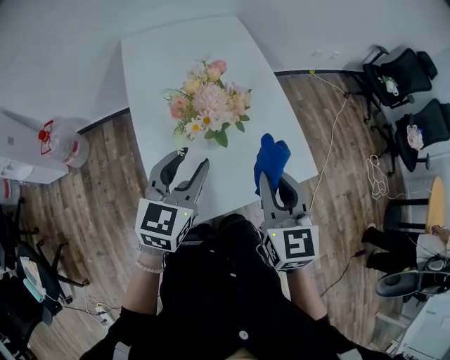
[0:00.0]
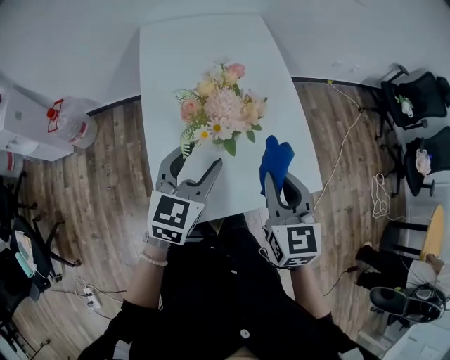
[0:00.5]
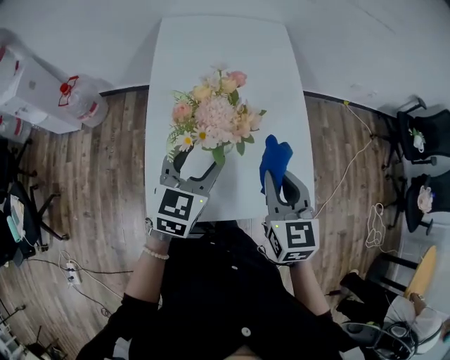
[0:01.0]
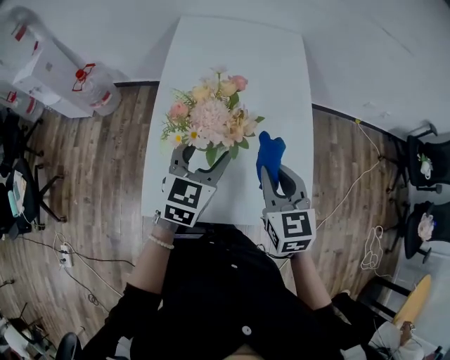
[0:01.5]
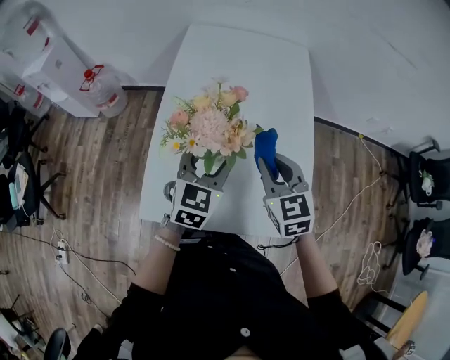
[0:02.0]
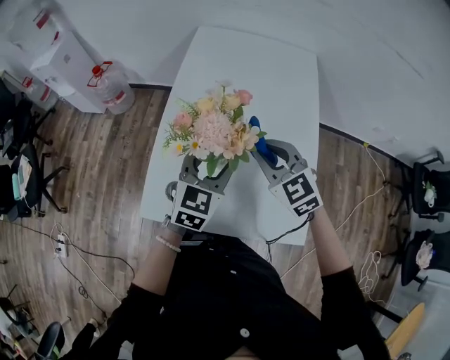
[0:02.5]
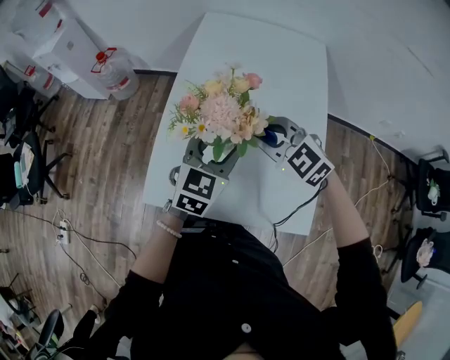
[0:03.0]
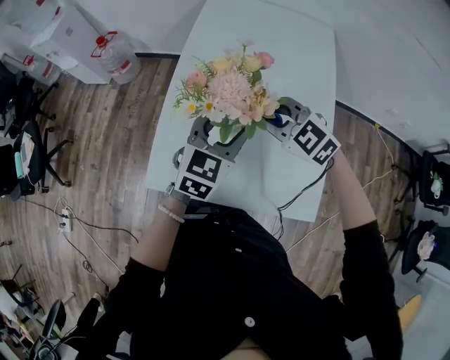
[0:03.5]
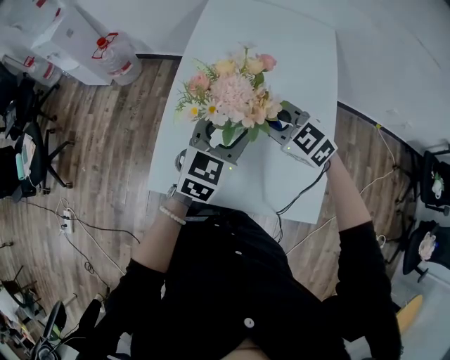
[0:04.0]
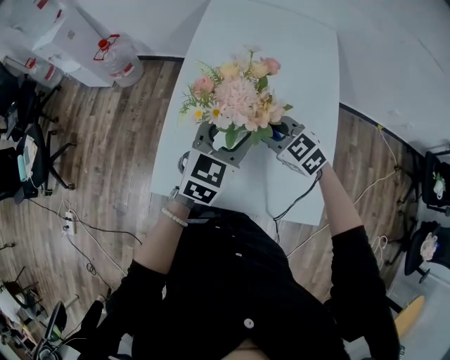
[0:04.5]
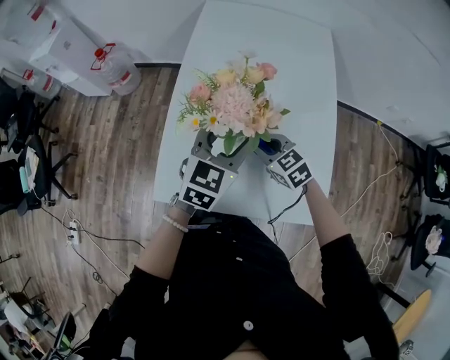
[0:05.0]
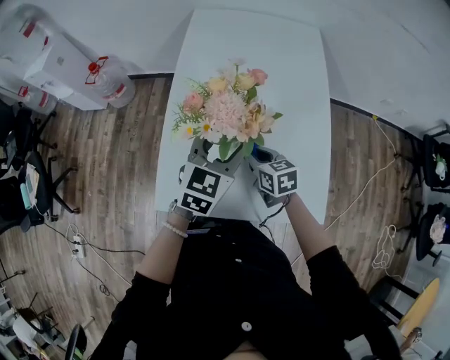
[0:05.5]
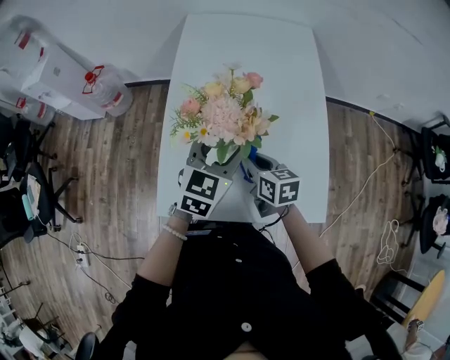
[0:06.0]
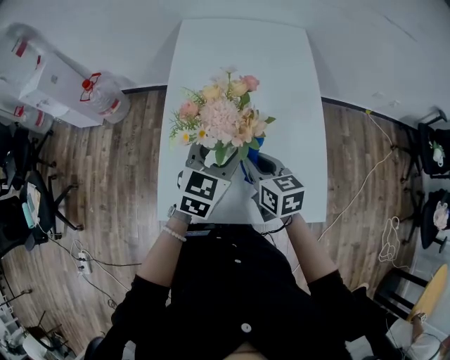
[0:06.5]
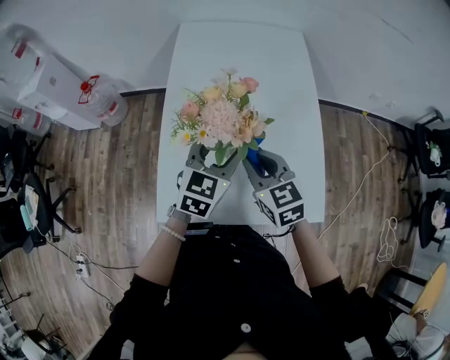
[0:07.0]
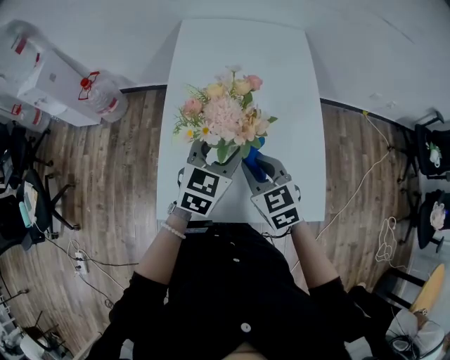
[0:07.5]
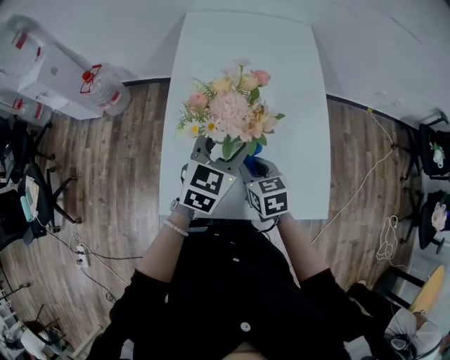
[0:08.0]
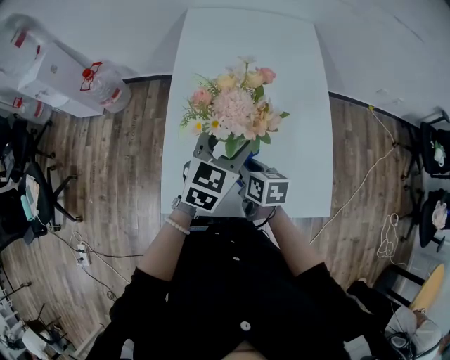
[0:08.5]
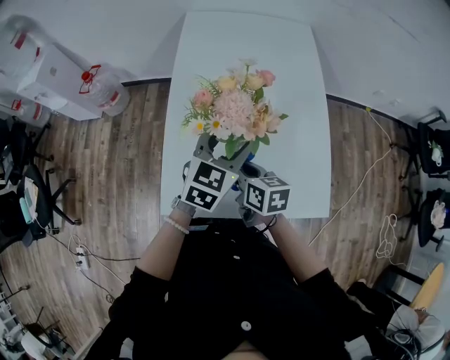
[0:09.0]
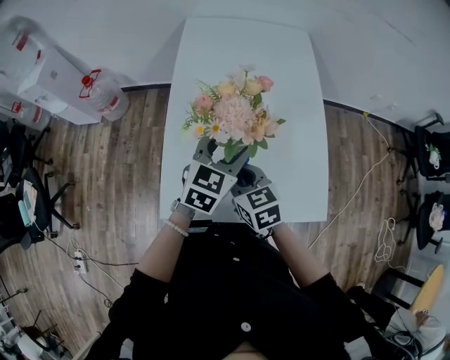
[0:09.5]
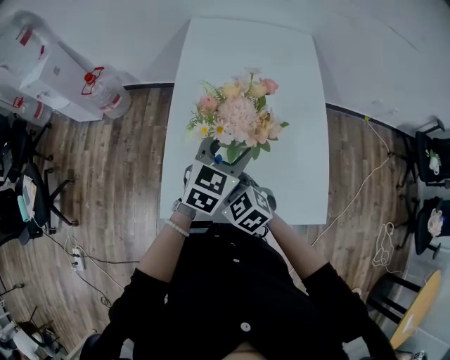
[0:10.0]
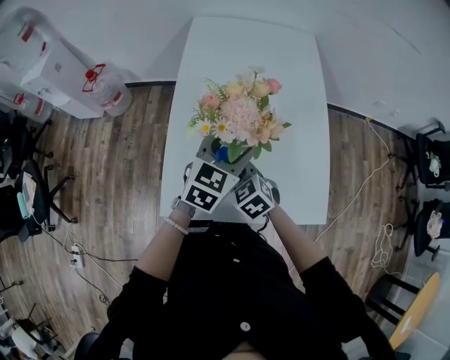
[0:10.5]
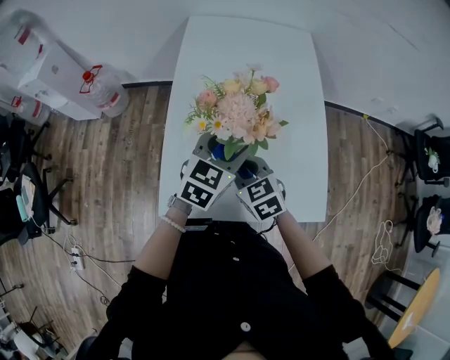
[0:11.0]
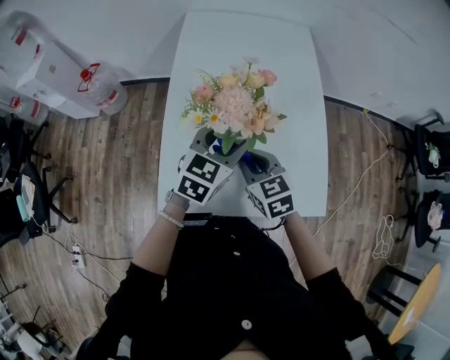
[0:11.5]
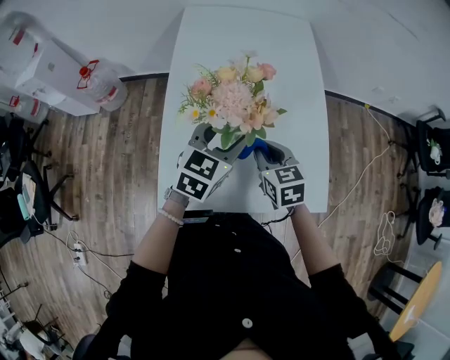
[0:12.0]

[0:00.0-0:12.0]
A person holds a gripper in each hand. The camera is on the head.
0:00.0 to 0:02.0: The right gripper ends up some 15 cm from where it was, and swivels some 40 degrees. Meanwhile the left gripper shifts by some 10 cm, and changes its angle by some 20 degrees.
0:02.0 to 0:04.0: The right gripper heads to the left and downward, covering some 10 cm, and rotates approximately 40 degrees.
0:04.0 to 0:06.0: The right gripper shifts roughly 10 cm downward, and rolls clockwise, seen from behind, by about 60 degrees.
0:06.0 to 0:08.0: The right gripper reaches some 10 cm upward, then returns.
0:08.0 to 0:10.0: The right gripper moves to the left, some 10 cm, and turns by roughly 40 degrees.
0:10.0 to 0:12.0: The right gripper heads to the right and forward, covering about 15 cm, and swivels about 40 degrees.

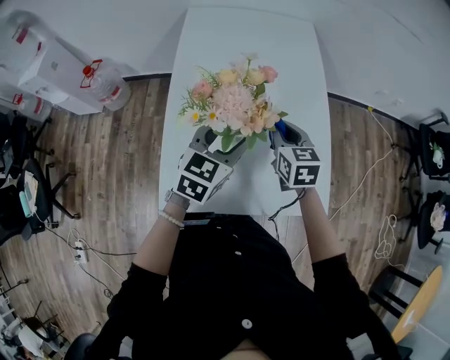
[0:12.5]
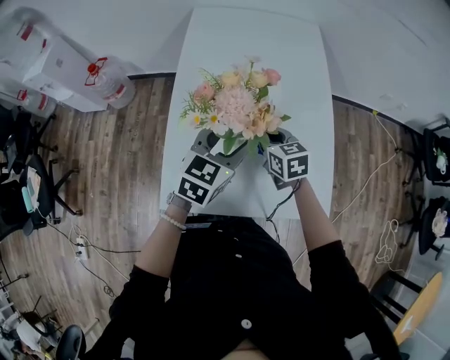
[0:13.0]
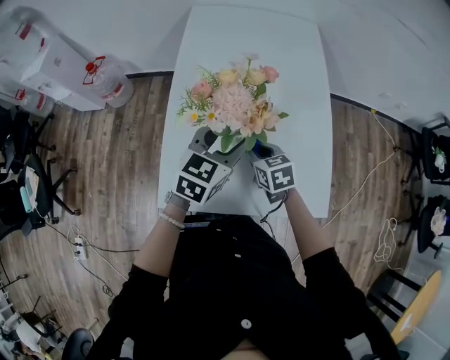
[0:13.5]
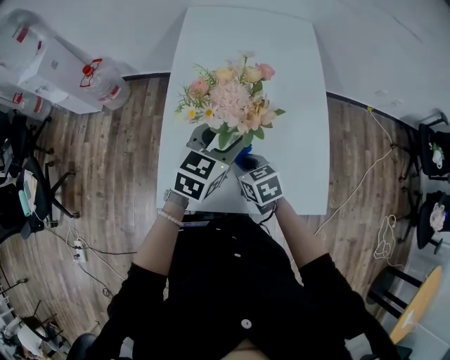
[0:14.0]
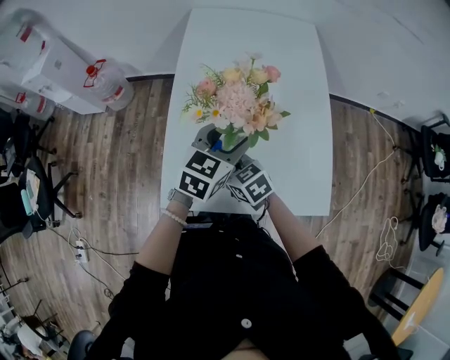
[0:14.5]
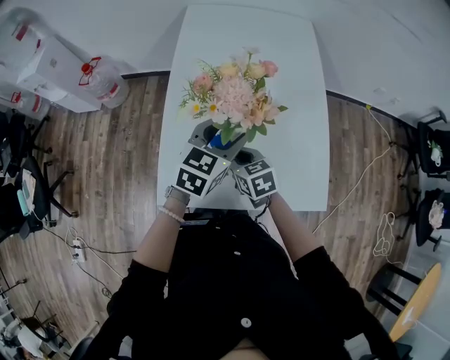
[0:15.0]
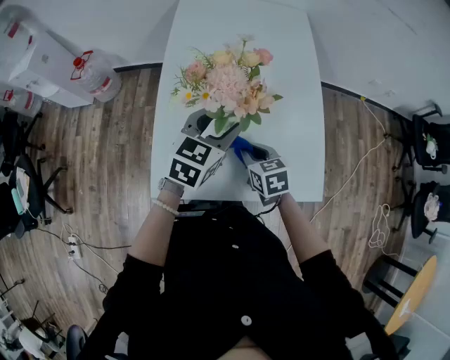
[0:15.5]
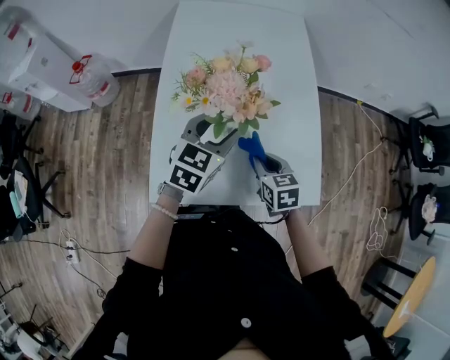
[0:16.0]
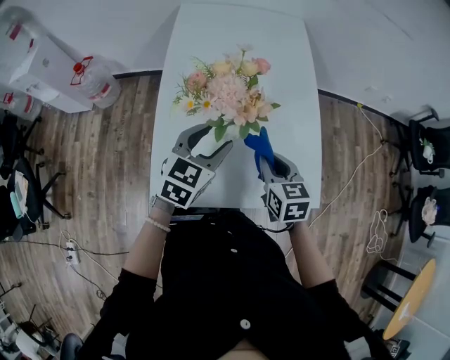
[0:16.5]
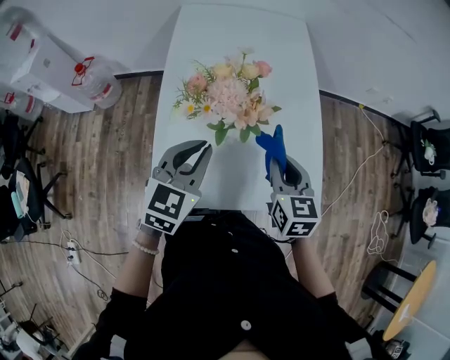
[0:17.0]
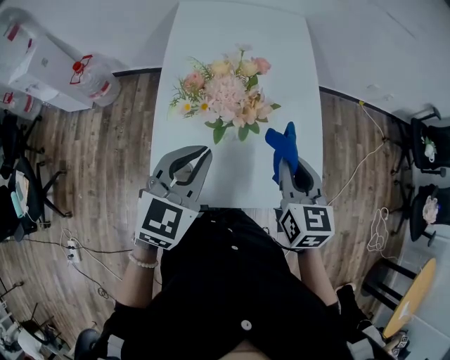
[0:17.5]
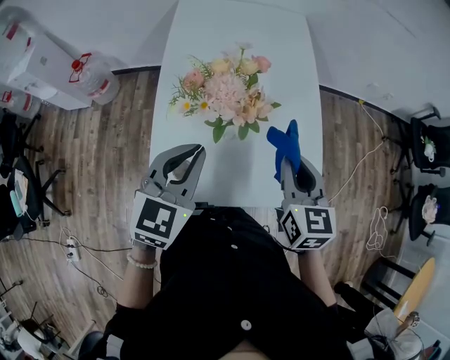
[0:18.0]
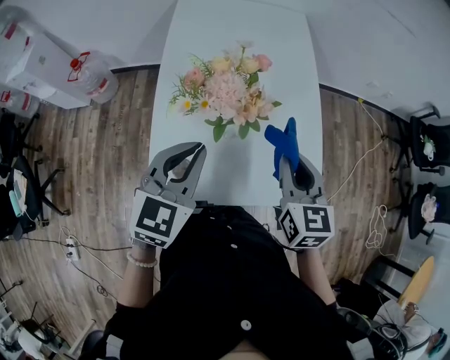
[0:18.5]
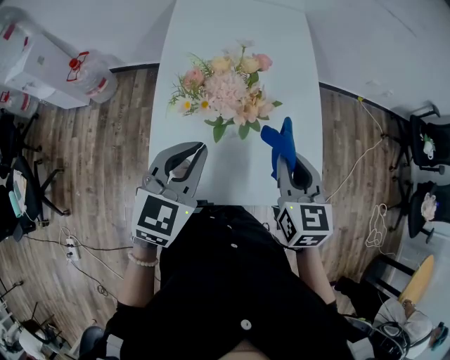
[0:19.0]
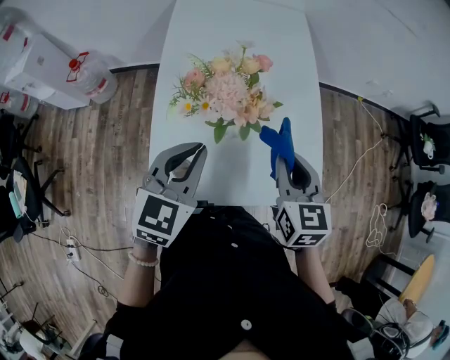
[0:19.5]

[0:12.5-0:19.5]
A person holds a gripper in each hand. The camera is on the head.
0:12.5 to 0:14.5: The right gripper shifts about 20 cm to the left, backward and downward, and changes its angle by about 40 degrees.
0:14.5 to 0:16.0: The right gripper heads to the right, covering approximately 15 cm, and swivels approximately 30 degrees.
0:16.0 to 0:17.5: The right gripper shifts roughly 15 cm upward, and turns by about 20 degrees. Meanwhile the left gripper shifts approximately 10 cm backward and upward, and closes up.
0:17.5 to 0:19.5: The grippers make only small movements.

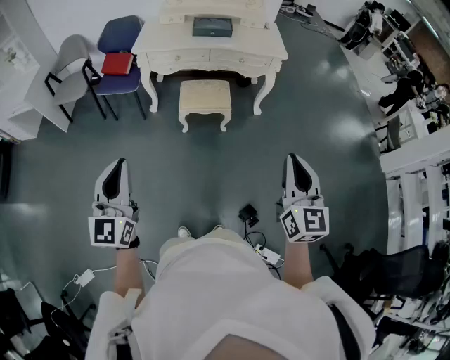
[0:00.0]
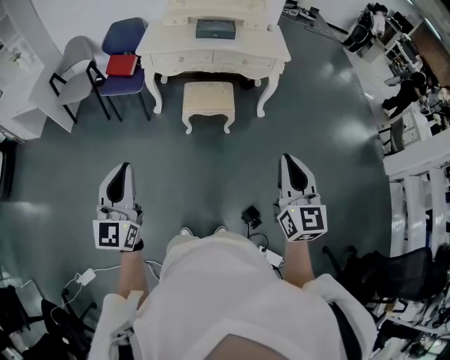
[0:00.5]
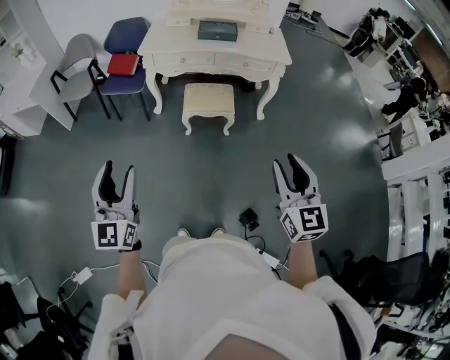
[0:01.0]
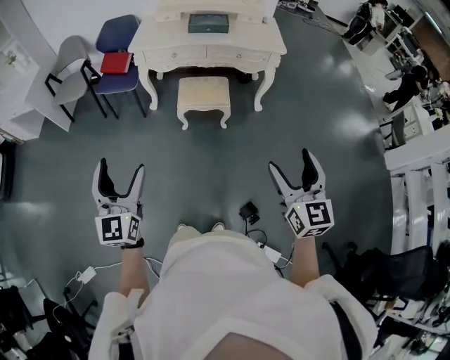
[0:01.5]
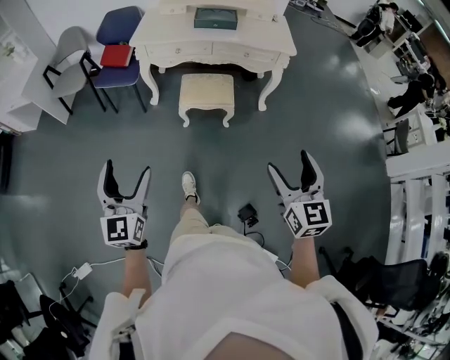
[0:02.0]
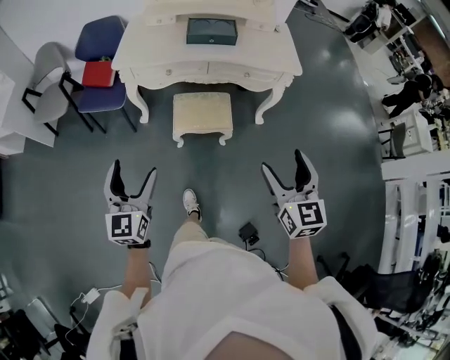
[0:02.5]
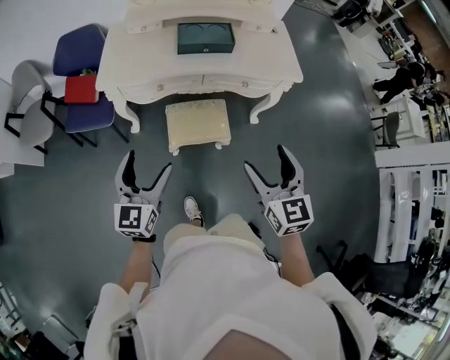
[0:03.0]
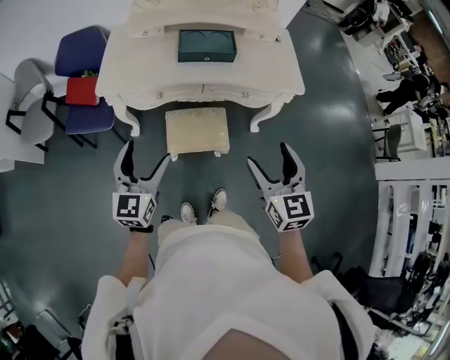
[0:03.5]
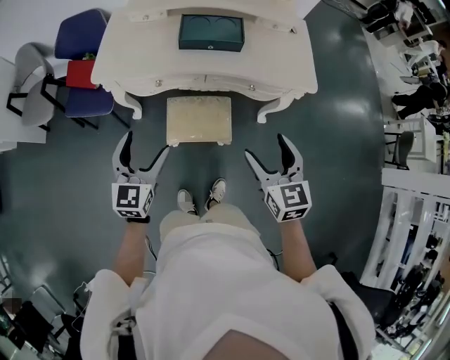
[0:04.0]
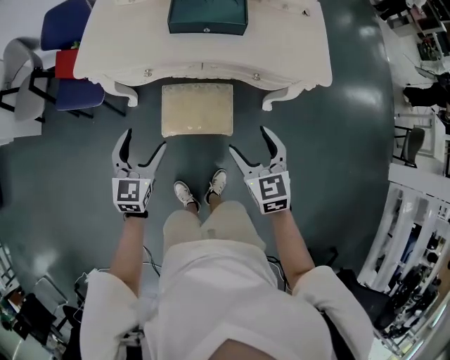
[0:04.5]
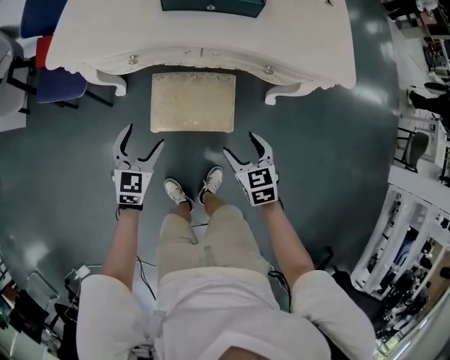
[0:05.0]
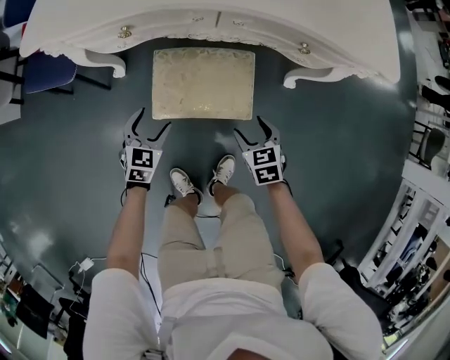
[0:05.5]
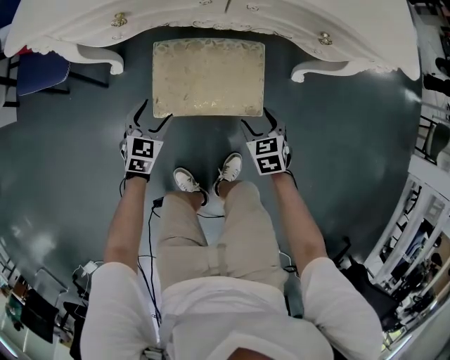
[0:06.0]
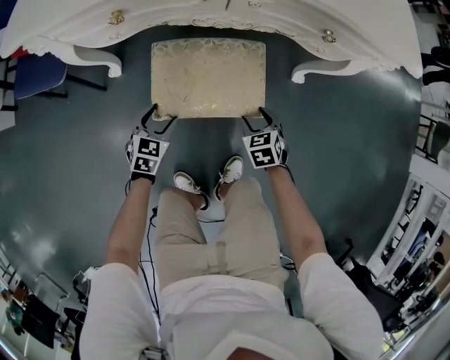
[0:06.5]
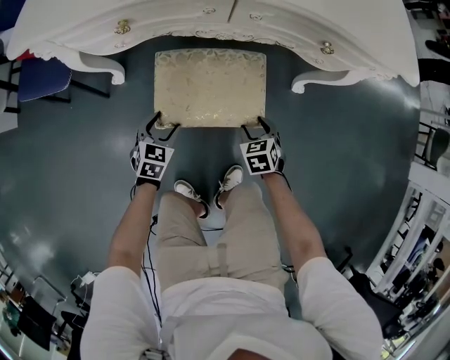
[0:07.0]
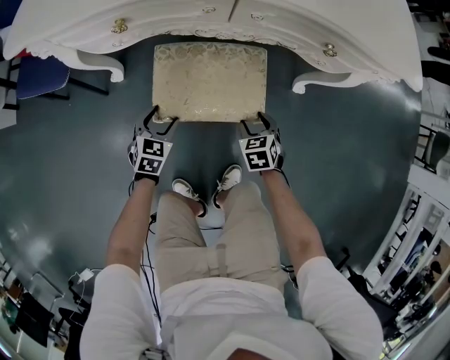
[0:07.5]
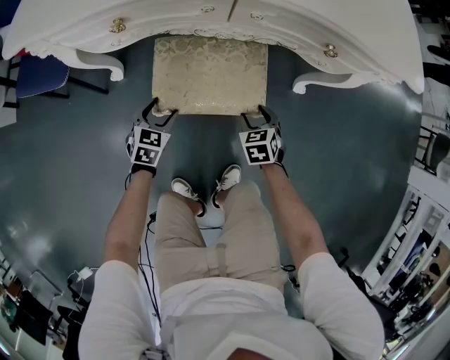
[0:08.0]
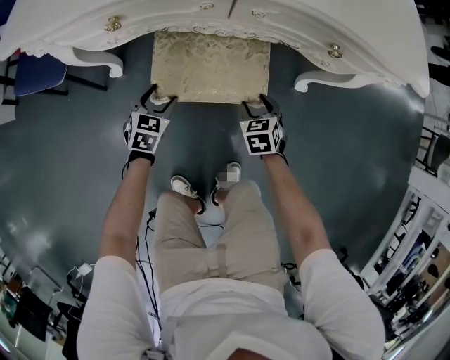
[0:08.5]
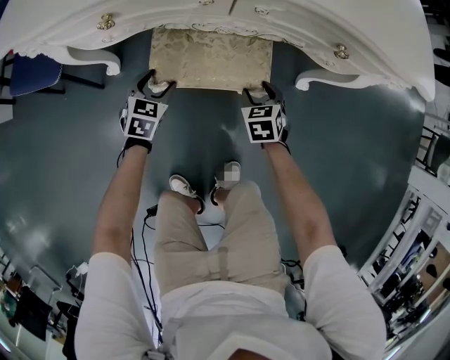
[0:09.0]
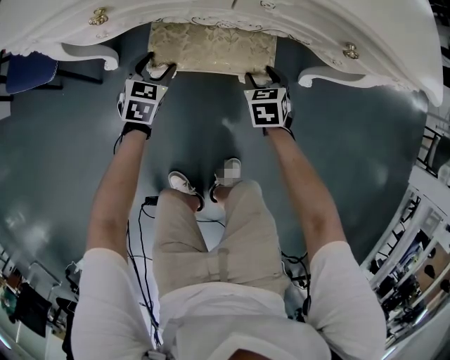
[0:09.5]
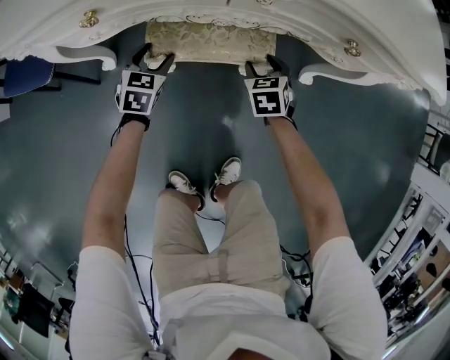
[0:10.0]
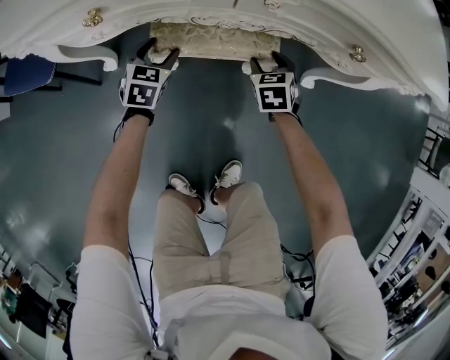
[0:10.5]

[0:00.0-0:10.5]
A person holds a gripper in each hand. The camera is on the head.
0:00.0 to 0:02.0: The two grippers go approximately 10 cm downward and forward. The right gripper opens up, while the left gripper opens.
0:02.0 to 0:04.0: The pair of grippers is taken forward, roughly 50 cm.
0:04.0 to 0:06.5: Both grippers move downward, approximately 60 cm. The right gripper points its fingers about 30 degrees further downward; the left gripper points its fingers about 30 degrees further downward.
0:06.5 to 0:08.5: Both grippers move forward, some 10 cm.
0:08.5 to 0:10.5: The two grippers go roughly 10 cm forward.
